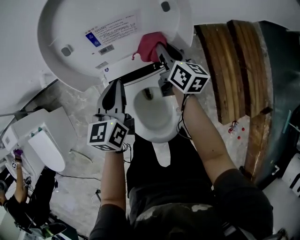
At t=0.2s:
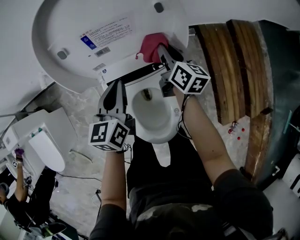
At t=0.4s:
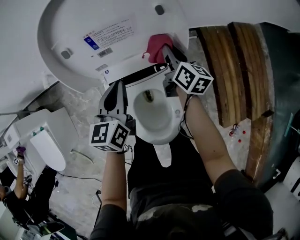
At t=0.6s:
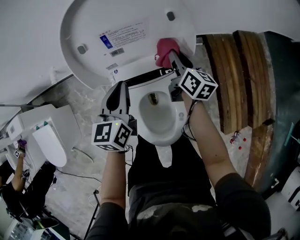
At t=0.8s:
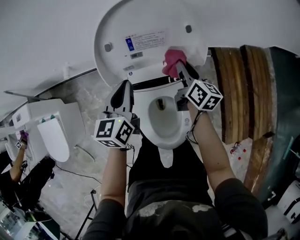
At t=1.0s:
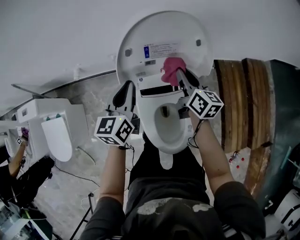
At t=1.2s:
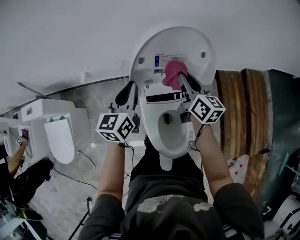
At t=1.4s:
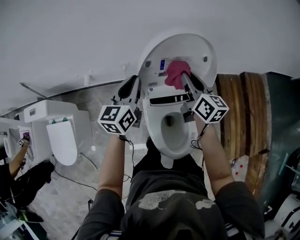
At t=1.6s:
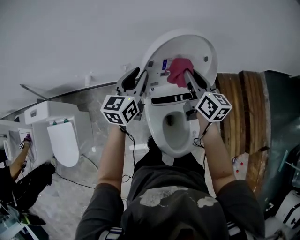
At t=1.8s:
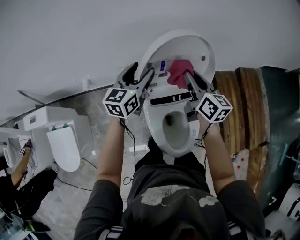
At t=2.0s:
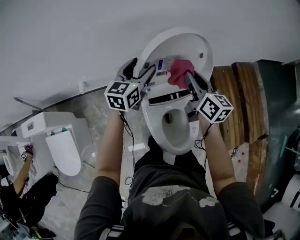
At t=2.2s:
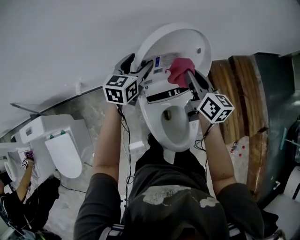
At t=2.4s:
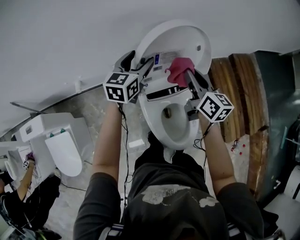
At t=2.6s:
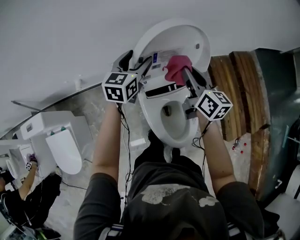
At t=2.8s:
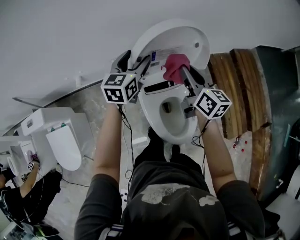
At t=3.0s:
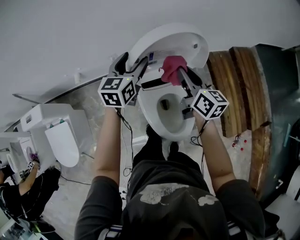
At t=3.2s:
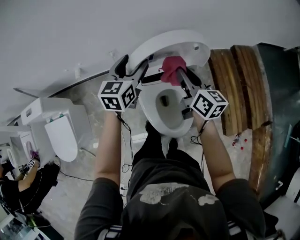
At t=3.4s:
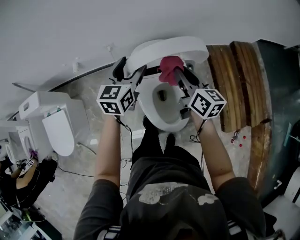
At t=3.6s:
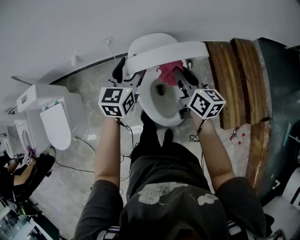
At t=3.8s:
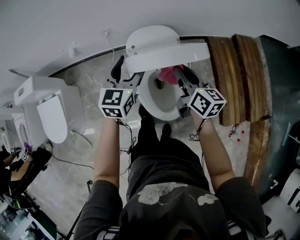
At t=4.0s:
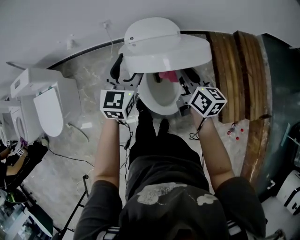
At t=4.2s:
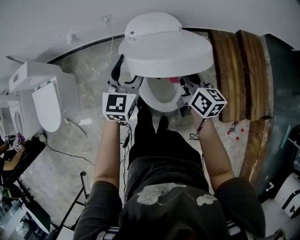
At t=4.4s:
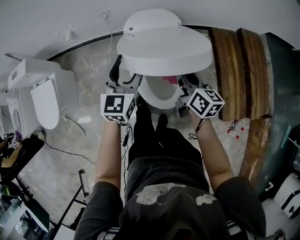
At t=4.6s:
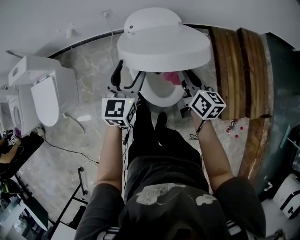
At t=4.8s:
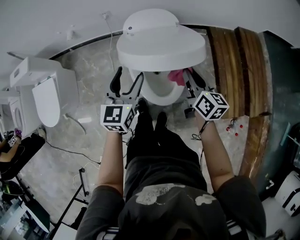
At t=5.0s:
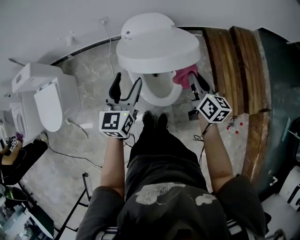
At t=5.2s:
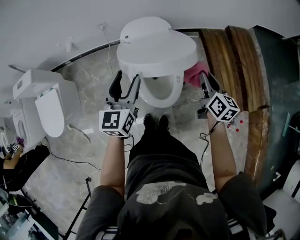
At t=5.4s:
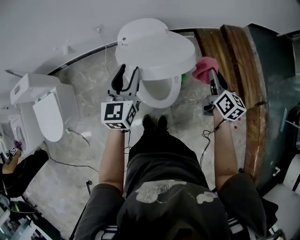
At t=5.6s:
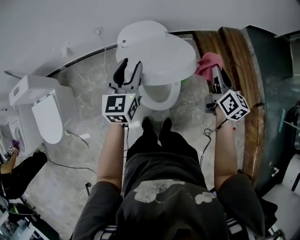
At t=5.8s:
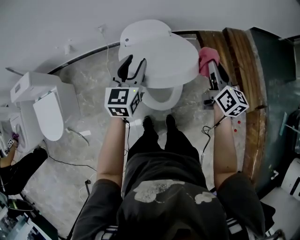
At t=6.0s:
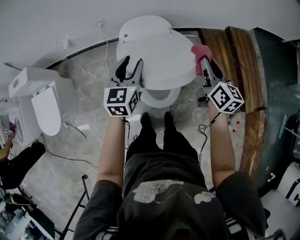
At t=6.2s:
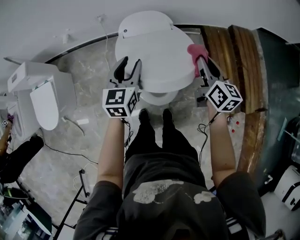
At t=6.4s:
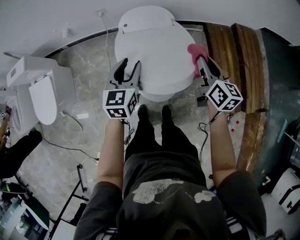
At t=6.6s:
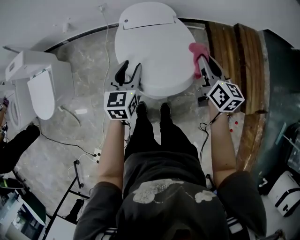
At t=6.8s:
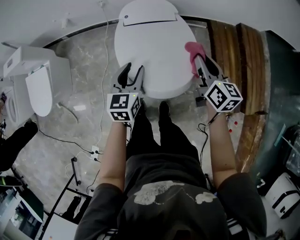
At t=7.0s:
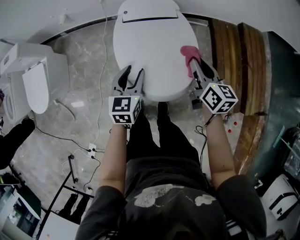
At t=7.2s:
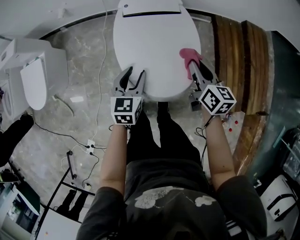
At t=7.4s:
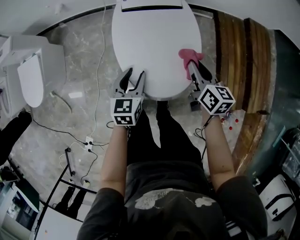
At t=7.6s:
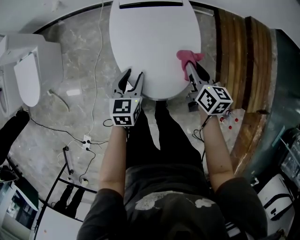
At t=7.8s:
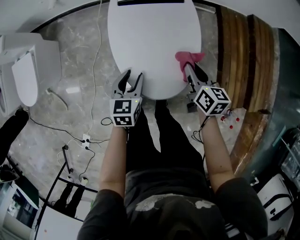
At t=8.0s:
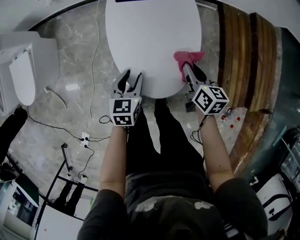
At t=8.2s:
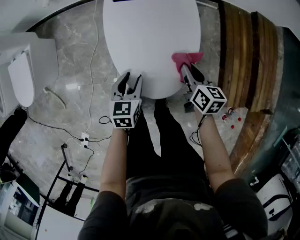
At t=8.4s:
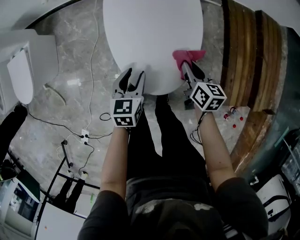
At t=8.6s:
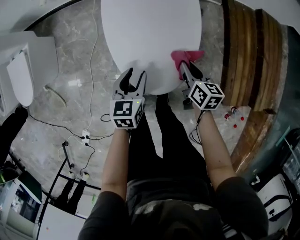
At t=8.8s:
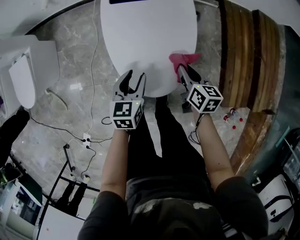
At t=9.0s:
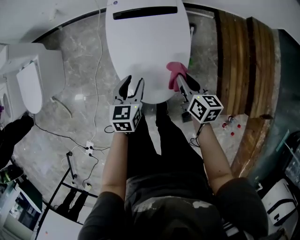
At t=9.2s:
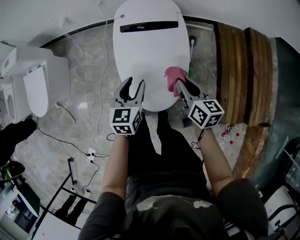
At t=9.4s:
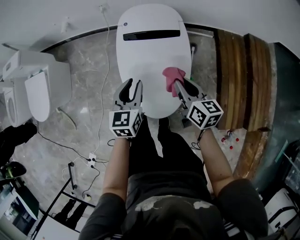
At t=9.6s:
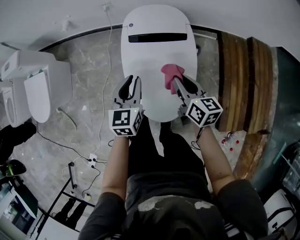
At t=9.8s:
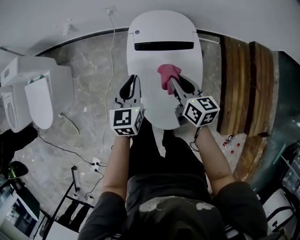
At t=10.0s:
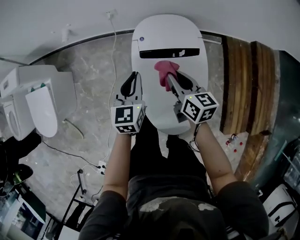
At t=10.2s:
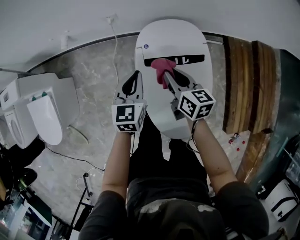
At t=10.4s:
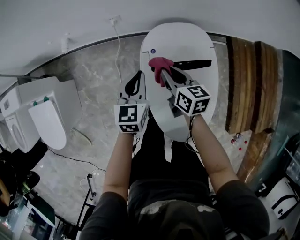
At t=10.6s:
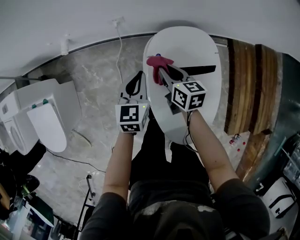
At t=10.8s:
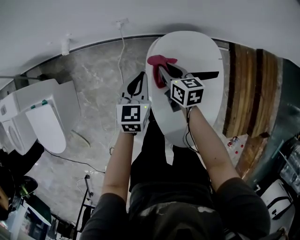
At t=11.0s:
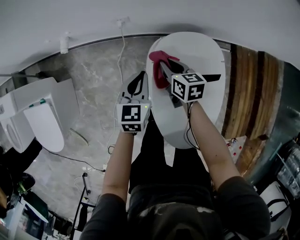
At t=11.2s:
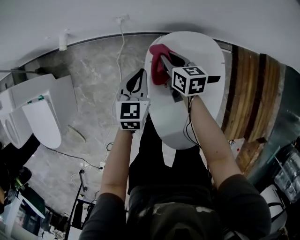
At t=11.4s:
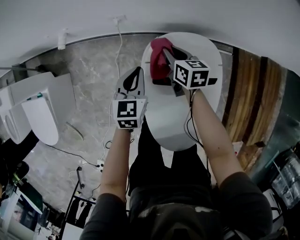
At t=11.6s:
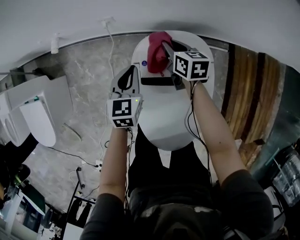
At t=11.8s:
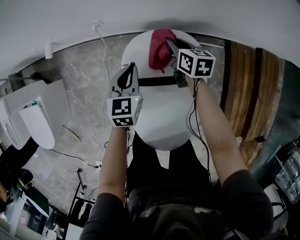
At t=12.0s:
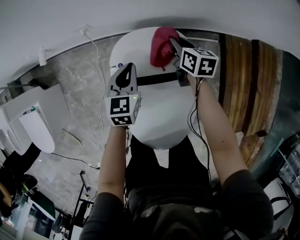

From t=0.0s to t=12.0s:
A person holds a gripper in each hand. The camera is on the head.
From t=0.0s to t=1.6s: Both grippers move upward and to the left, some 25 cm.
From t=1.6s to t=3.0s: The right gripper shifts approximately 10 cm backward. Meanwhile the left gripper is displaced to the right by approximately 5 cm, goes forward and returns, some 5 cm each way, and opens up.
From t=3.0s to t=4.4s: The left gripper heads backward, covering roughly 25 cm. The right gripper travels backward and downward by roughly 20 cm.
From t=4.4s to t=6.0s: The right gripper shifts approximately 15 cm to the right and upward; the left gripper travels backward and back again, about 10 cm each way, and closes up.
From t=6.0s to t=7.6s: The right gripper travels downward by roughly 20 cm, and turns by about 20 degrees. Meanwhile the left gripper heads downward and backward, covering some 25 cm, and changes its angle by approximately 20 degrees.
From t=7.6s to t=9.0s: The right gripper moves about 15 cm downward and comes back.
From t=9.0s to t=10.4s: The left gripper travels forward by approximately 30 cm, and closes. Meanwhile the right gripper travels forward and to the left by about 35 cm.
From t=10.4s to t=12.0s: The right gripper travels to the right and forward by roughly 25 cm. The left gripper moves to the right, forward and downward, about 15 cm.

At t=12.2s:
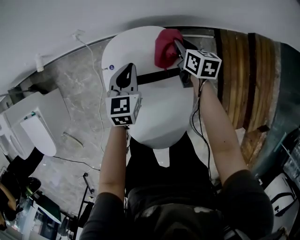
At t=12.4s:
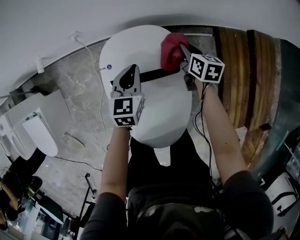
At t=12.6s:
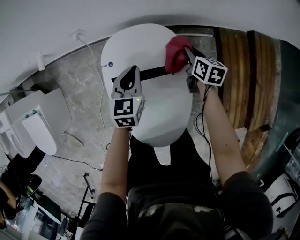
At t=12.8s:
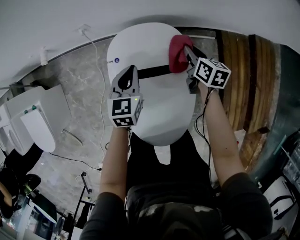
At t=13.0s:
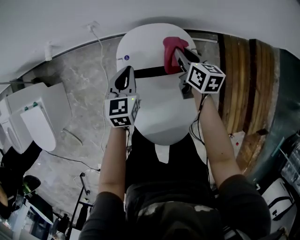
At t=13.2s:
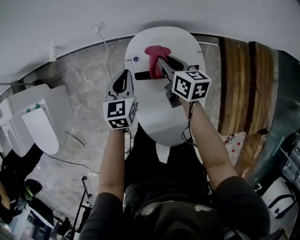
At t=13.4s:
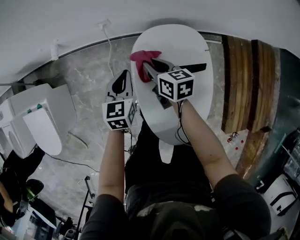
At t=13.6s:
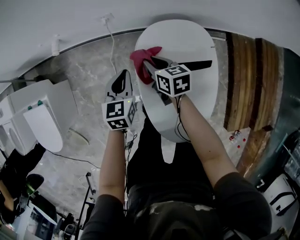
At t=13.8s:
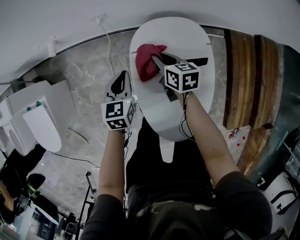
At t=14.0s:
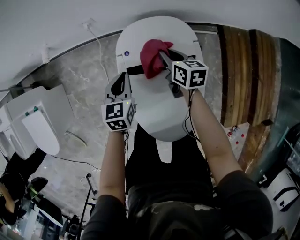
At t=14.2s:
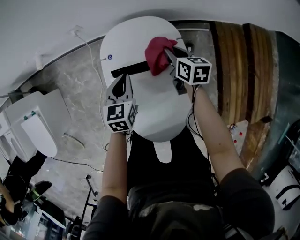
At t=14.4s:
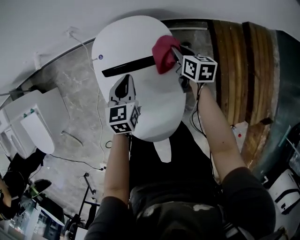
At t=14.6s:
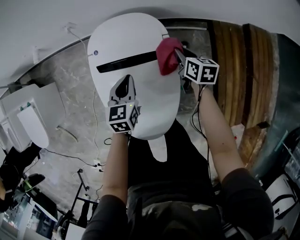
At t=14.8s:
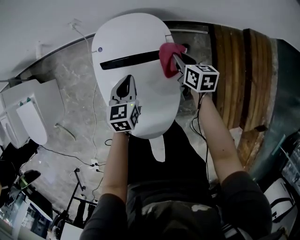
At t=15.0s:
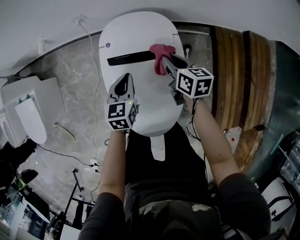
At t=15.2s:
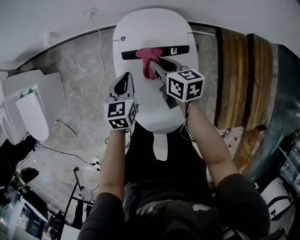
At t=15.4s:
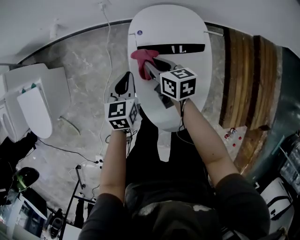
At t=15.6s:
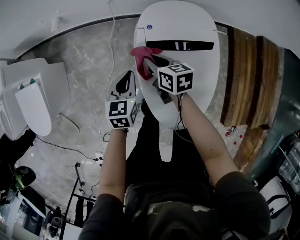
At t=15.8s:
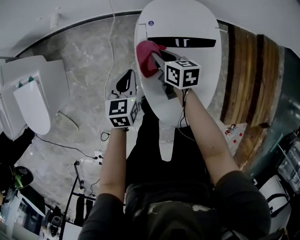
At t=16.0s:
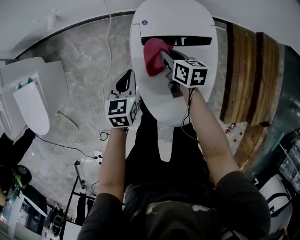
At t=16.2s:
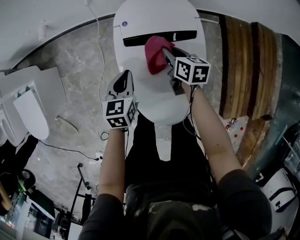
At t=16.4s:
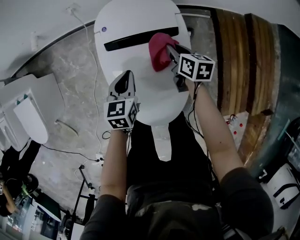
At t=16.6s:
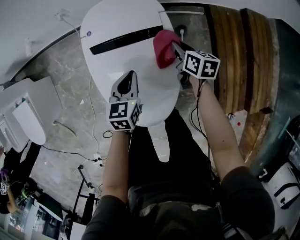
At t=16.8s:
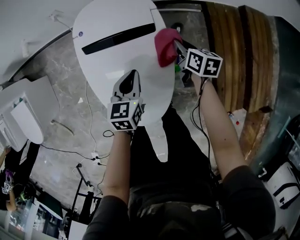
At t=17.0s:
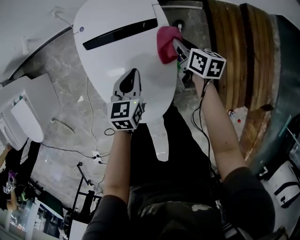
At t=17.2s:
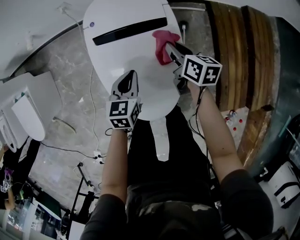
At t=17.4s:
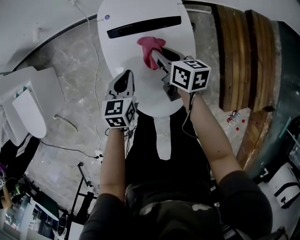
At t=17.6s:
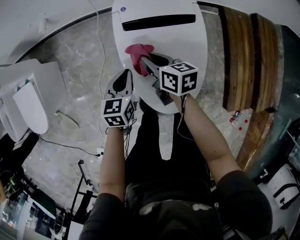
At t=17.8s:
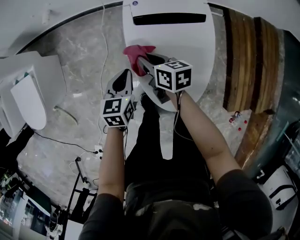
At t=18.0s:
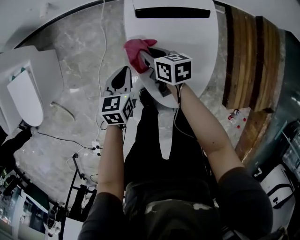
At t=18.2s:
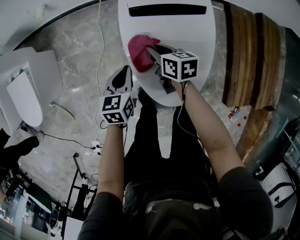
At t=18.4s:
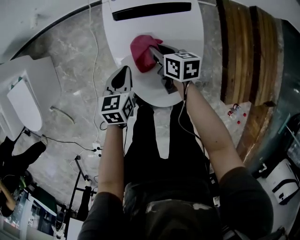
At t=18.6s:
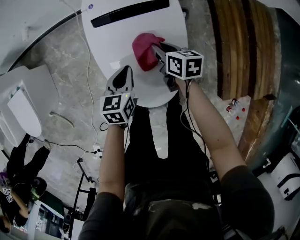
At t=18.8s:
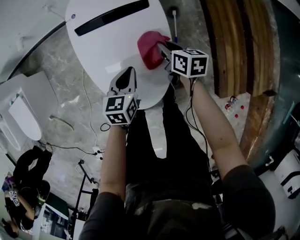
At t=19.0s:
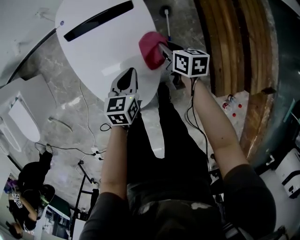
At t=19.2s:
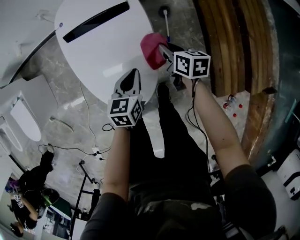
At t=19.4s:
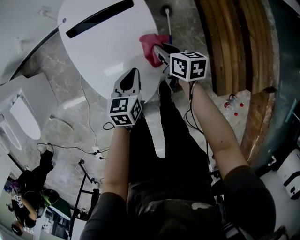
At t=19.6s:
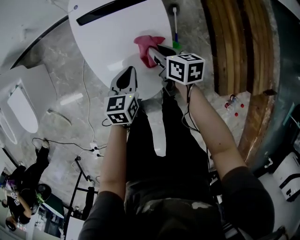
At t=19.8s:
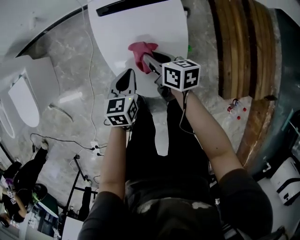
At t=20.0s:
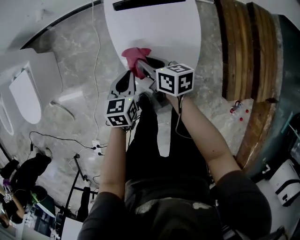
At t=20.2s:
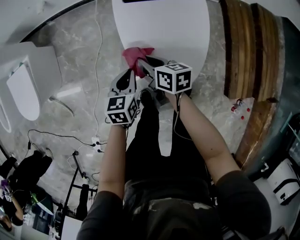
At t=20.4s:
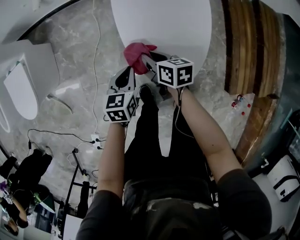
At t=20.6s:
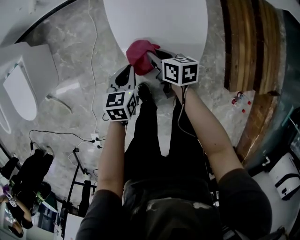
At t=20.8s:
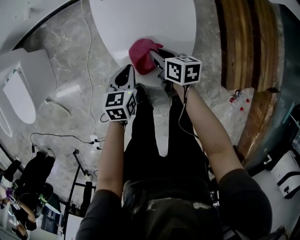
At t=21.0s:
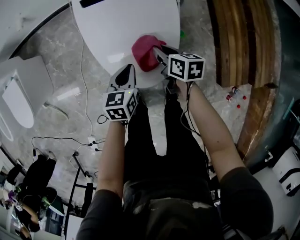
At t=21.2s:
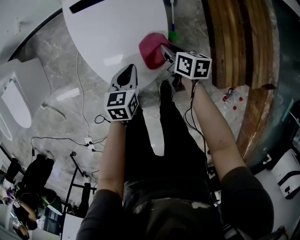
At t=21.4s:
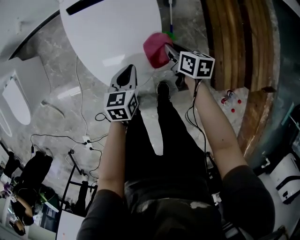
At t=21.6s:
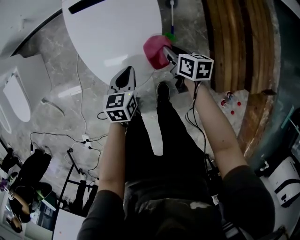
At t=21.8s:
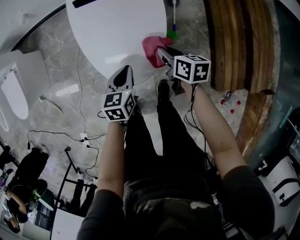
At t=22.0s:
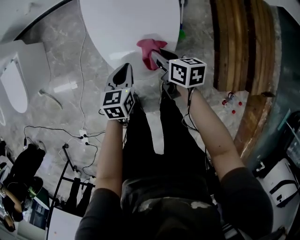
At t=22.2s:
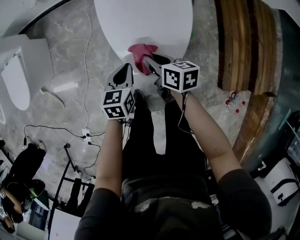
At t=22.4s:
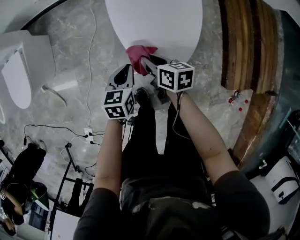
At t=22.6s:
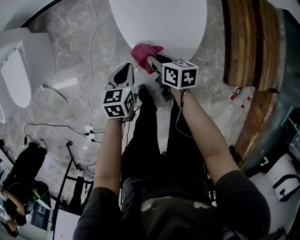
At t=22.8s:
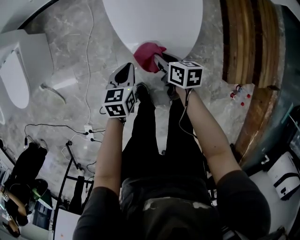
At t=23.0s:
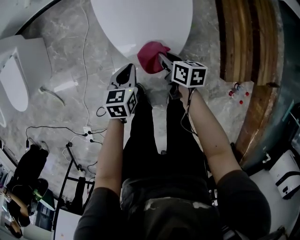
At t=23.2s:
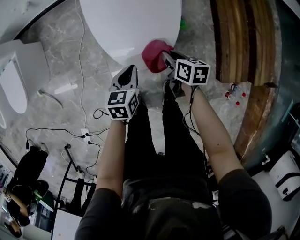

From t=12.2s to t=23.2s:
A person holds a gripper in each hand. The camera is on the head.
From t=12.2s to t=13.8s: The right gripper goes left and right, roughly 35 cm each way, reversing 2 times. Meanwhile the left gripper is displaced to the left by some 15 cm.
From t=13.8s to t=15.4s: Both grippers travel together backward, about 10 cm. The left gripper moves approximately 20 cm to the right and comes back. Meanwhile the right gripper moves some 30 cm to the right and comes back.
From t=15.4s to t=17.0s: The left gripper heads to the right and backward, covering approximately 20 cm, while the right gripper travels to the right by some 30 cm, and rotates some 20 degrees.
From t=17.0s to t=18.4s: The grippers both shift to the left by approximately 20 cm.
From t=18.4s to t=20.0s: The right gripper goes roughly 10 cm backward and upward, and travels to the right and back again, approximately 25 cm each way; the left gripper moves backward, roughly 10 cm, and moves roughly 20 cm to the right and comes back.
From t=20.0s to t=21.6s: The right gripper shifts roughly 25 cm to the right, while the left gripper is displaced to the right by some 15 cm.
From t=21.6s to t=23.2s: Both grippers move to the left and backward, approximately 10 cm.
